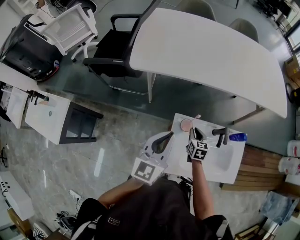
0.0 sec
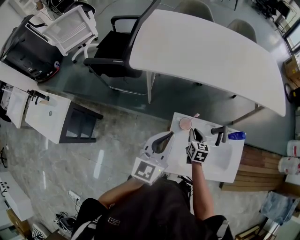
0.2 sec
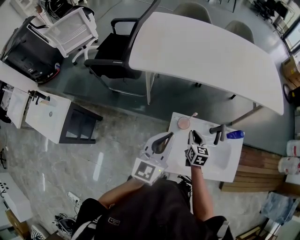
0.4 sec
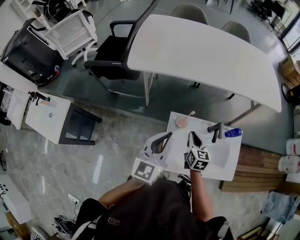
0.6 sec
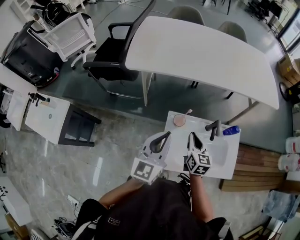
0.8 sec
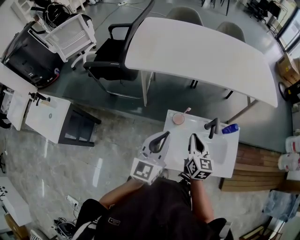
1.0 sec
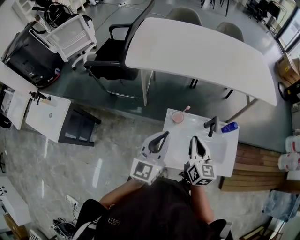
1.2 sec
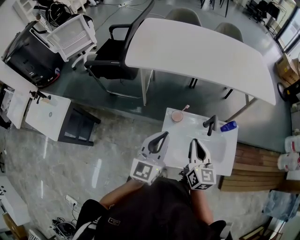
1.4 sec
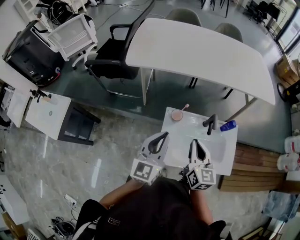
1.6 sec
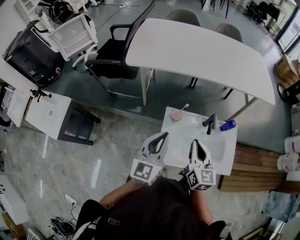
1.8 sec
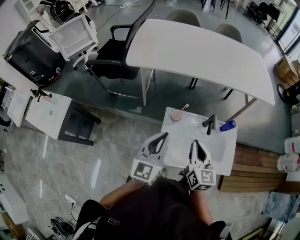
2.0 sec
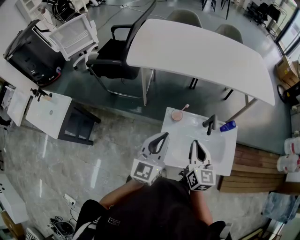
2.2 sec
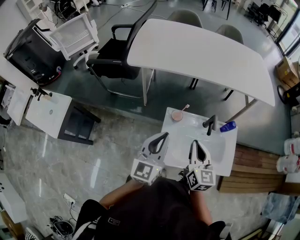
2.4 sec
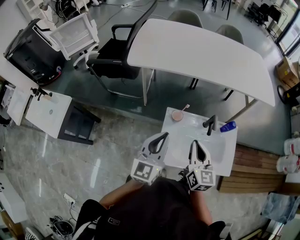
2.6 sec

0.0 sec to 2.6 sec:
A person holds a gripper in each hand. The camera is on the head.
0.0 sec to 1.2 sec: The left gripper is displaced backward by roughly 10 cm. Meanwhile the right gripper shifts some 25 cm upward and backward, and turns by approximately 30 degrees.
1.2 sec to 2.6 sec: The grippers make only small movements.

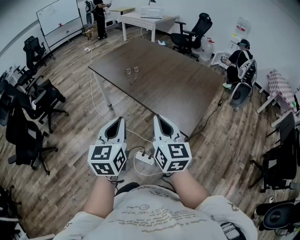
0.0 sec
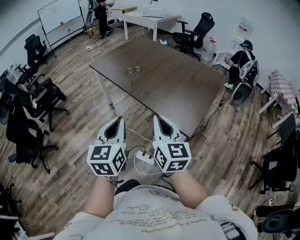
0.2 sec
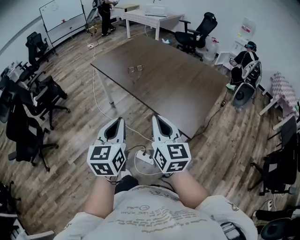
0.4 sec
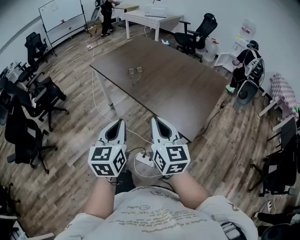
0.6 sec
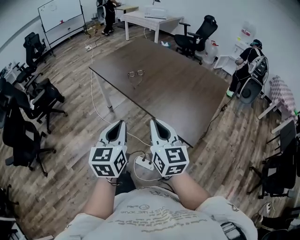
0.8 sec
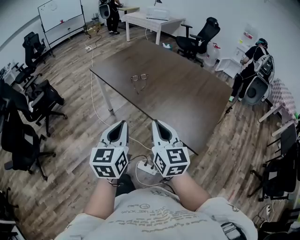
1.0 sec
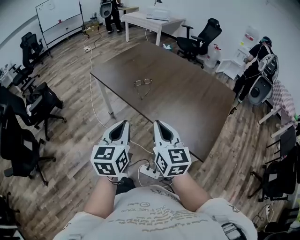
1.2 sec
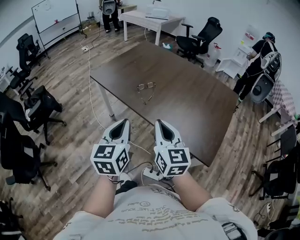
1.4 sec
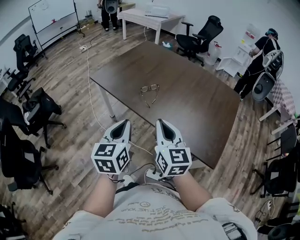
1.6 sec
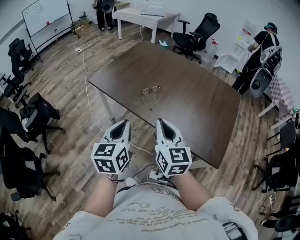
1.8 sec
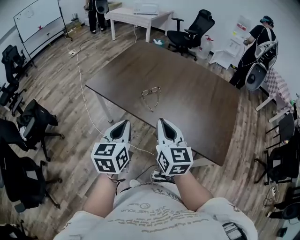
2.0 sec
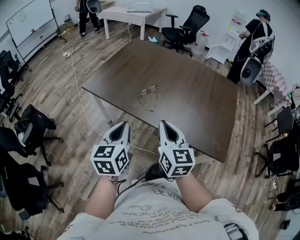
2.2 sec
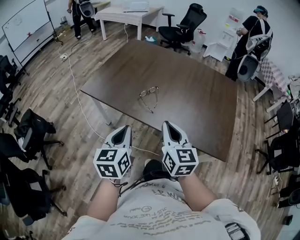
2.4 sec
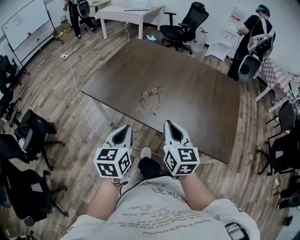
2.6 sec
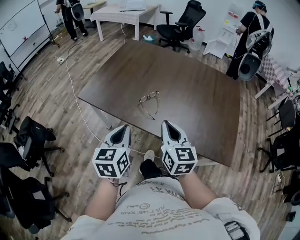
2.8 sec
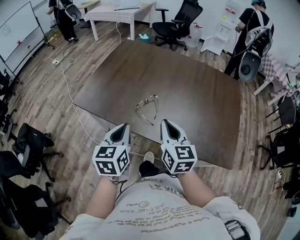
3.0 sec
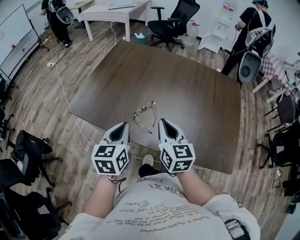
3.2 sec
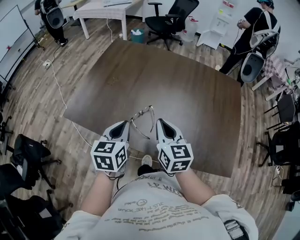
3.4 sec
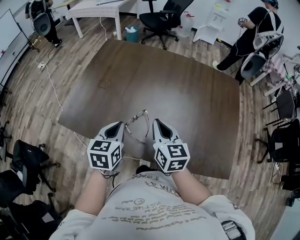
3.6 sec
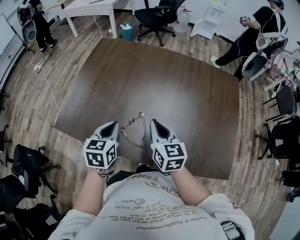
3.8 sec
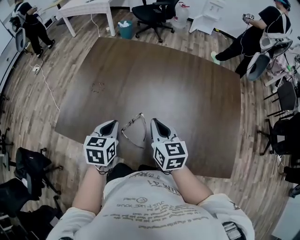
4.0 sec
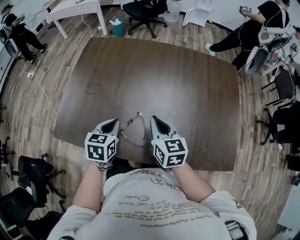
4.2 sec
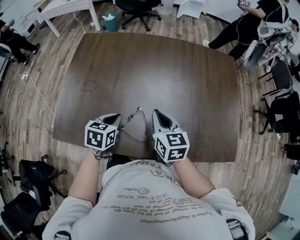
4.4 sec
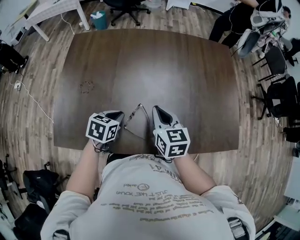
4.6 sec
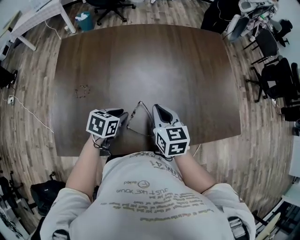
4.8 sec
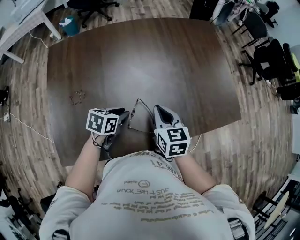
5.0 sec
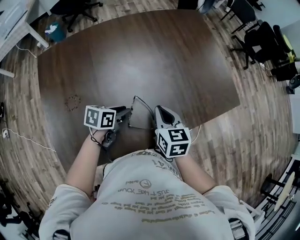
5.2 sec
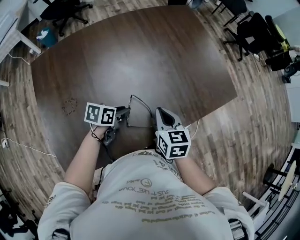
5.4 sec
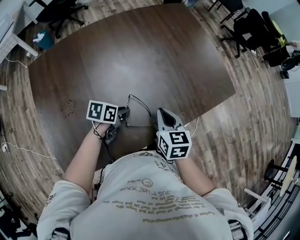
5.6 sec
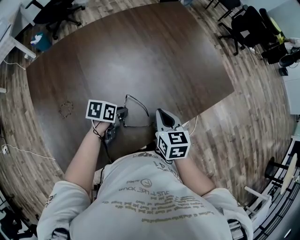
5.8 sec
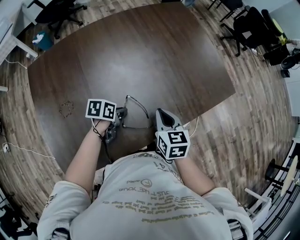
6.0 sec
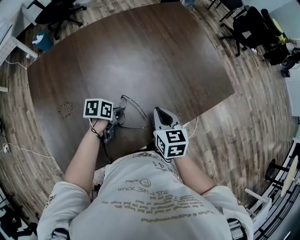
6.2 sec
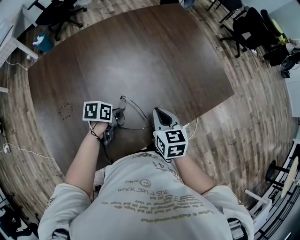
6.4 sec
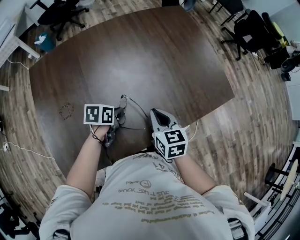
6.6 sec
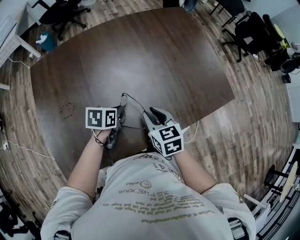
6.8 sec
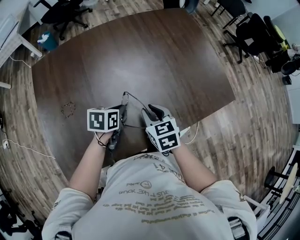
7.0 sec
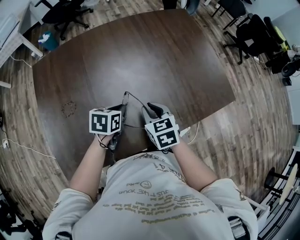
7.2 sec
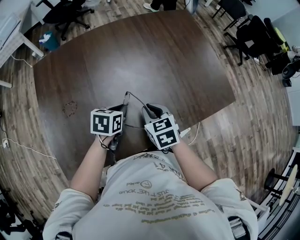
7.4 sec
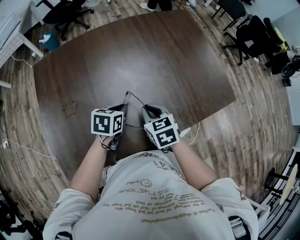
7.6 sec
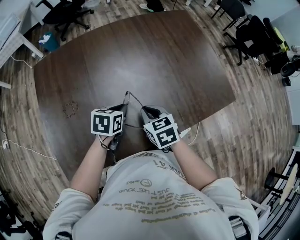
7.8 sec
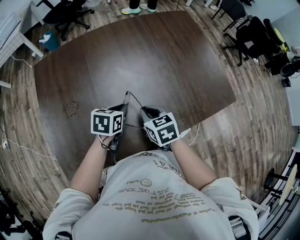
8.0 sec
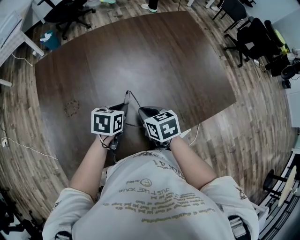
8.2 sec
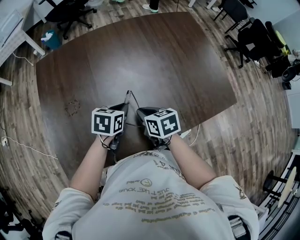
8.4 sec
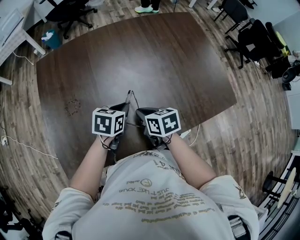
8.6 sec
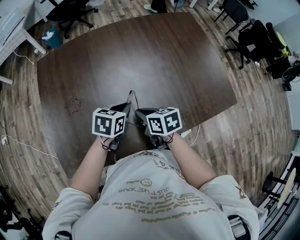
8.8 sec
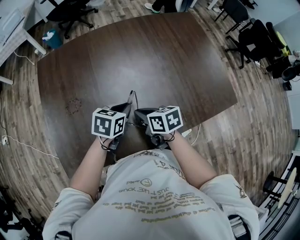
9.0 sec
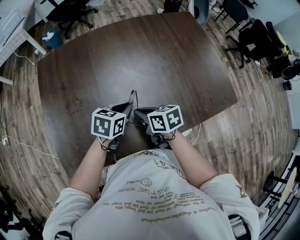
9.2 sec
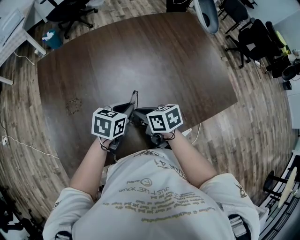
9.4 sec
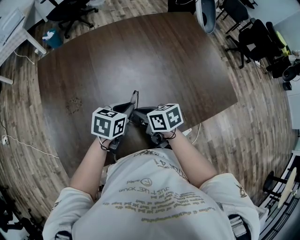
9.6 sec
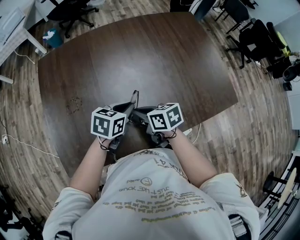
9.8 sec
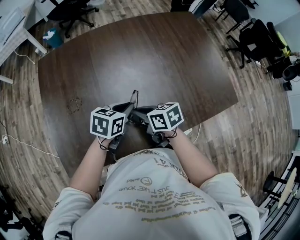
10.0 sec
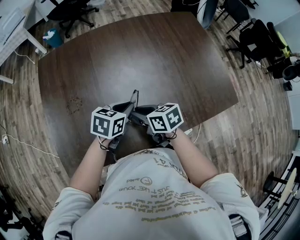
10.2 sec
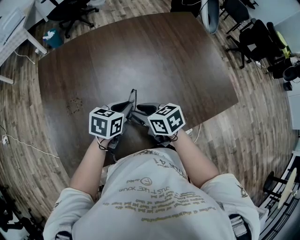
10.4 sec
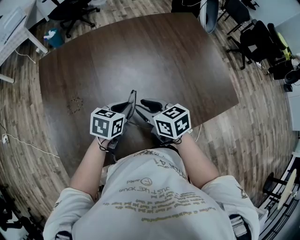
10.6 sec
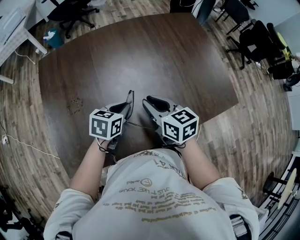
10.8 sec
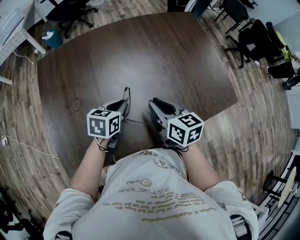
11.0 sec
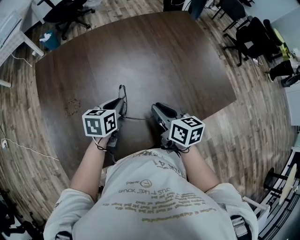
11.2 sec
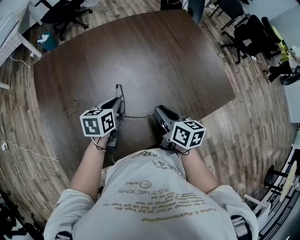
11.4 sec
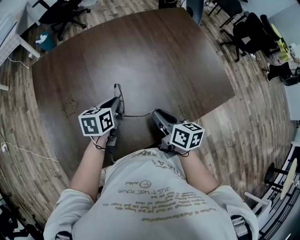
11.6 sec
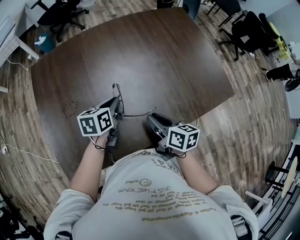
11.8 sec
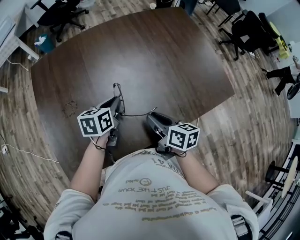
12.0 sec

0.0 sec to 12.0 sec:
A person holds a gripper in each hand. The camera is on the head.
0.0 sec to 1.6 sec: The two grippers go some 30 cm forward and to the left.
1.6 sec to 3.0 sec: The grippers both shift forward by about 20 cm.
3.0 sec to 4.4 sec: The right gripper heads forward, covering roughly 20 cm. The left gripper travels forward and downward by some 25 cm, and rotates about 40 degrees.
4.4 sec to 6.0 sec: The left gripper goes some 10 cm downward, and swivels about 50 degrees. Meanwhile the right gripper changes place by some 10 cm, and changes its angle by about 40 degrees.
6.0 sec to 7.6 sec: The left gripper is displaced upward by approximately 10 cm, and rotates roughly 20 degrees; the right gripper moves to the left, approximately 5 cm, and turns by about 20 degrees.
7.6 sec to 9.0 sec: The right gripper heads to the left, covering about 5 cm, and changes its angle by roughly 30 degrees.
9.0 sec to 10.4 sec: The right gripper opens its fingers.
10.4 sec to 12.0 sec: The right gripper goes approximately 10 cm to the right, and changes its angle by about 30 degrees.

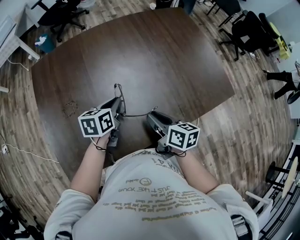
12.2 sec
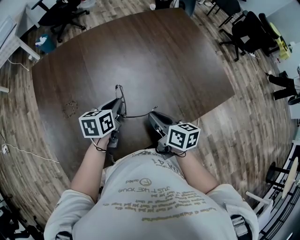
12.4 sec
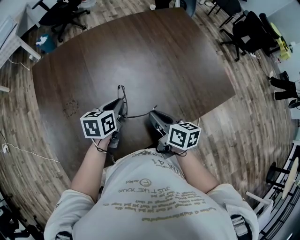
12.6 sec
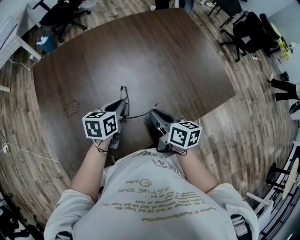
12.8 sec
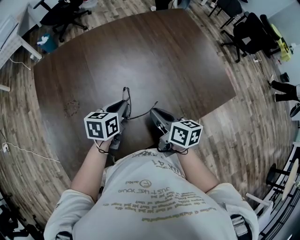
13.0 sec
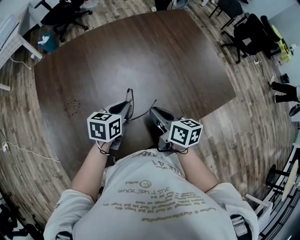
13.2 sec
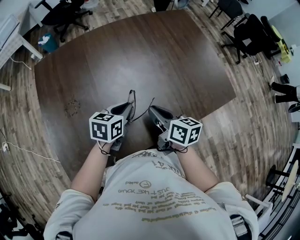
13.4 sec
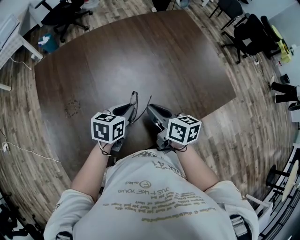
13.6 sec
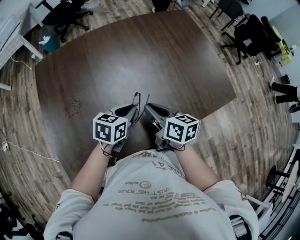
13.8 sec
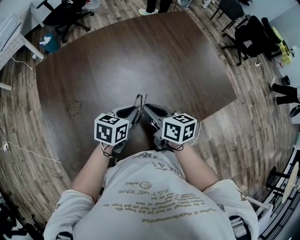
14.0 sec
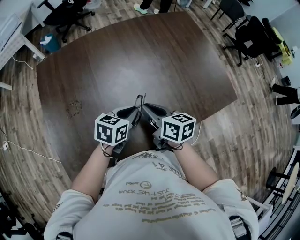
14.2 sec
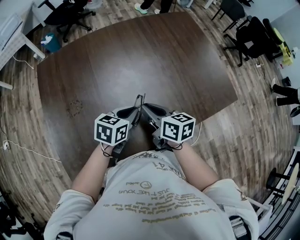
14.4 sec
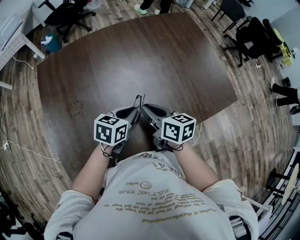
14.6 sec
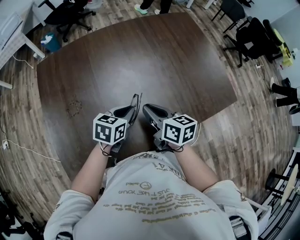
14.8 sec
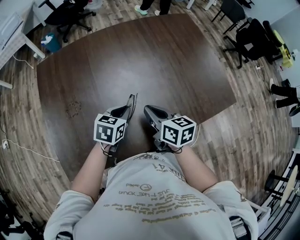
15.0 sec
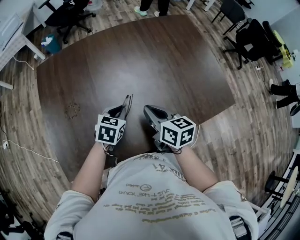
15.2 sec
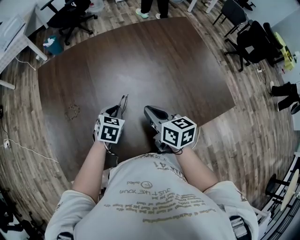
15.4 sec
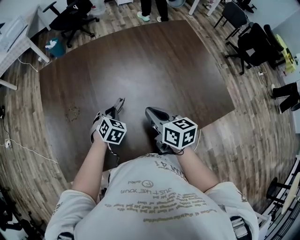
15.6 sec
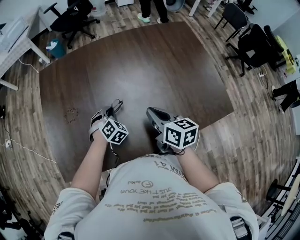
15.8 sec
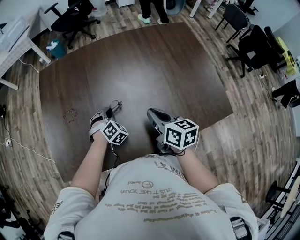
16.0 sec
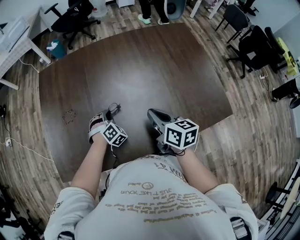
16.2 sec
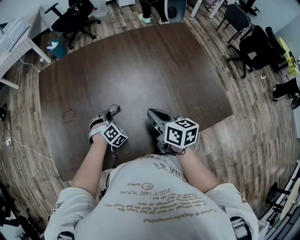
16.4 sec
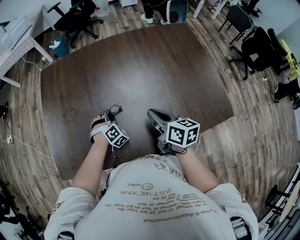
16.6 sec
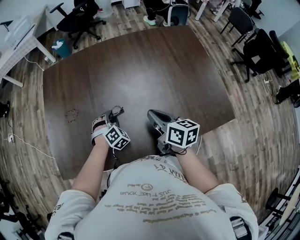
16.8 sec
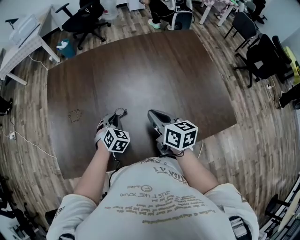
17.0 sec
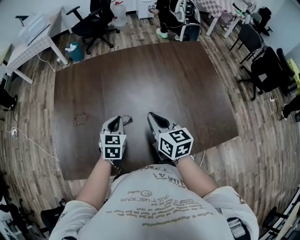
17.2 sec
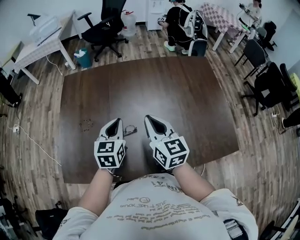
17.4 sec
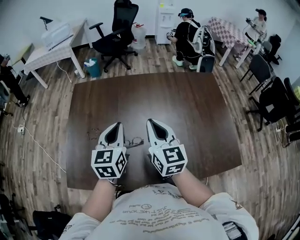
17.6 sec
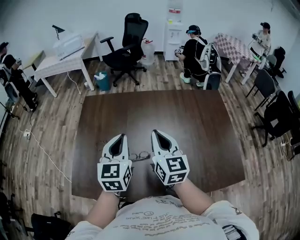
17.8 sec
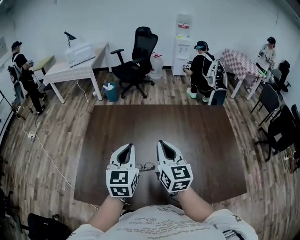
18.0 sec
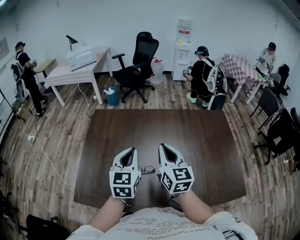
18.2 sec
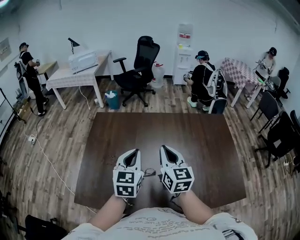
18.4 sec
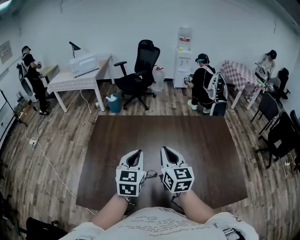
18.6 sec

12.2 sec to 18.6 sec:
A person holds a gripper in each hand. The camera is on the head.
12.2 sec to 13.8 sec: The left gripper travels to the right by about 5 cm.
13.8 sec to 15.4 sec: The left gripper shifts by roughly 5 cm, and swivels some 30 degrees.
15.4 sec to 17.0 sec: The right gripper heads to the right, covering approximately 5 cm, while the left gripper reaches about 10 cm downward, then returns, swivels roughly 20 degrees, and opens, then closes again.
17.0 sec to 18.6 sec: The left gripper moves upward, some 25 cm, and points its fingers approximately 30 degrees further upward. Meanwhile the right gripper shifts about 20 cm upward, to the left and forward, and turns by approximately 30 degrees.

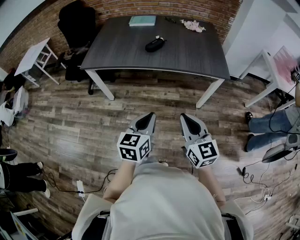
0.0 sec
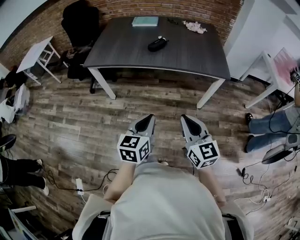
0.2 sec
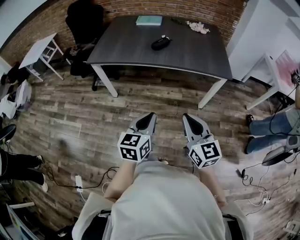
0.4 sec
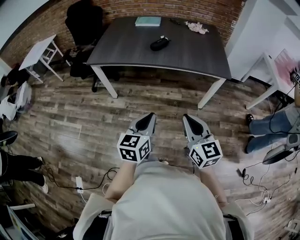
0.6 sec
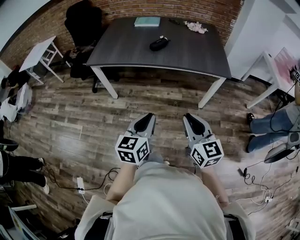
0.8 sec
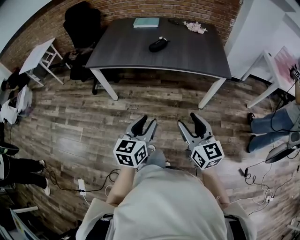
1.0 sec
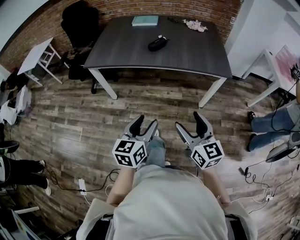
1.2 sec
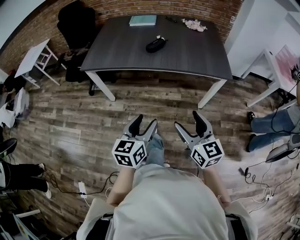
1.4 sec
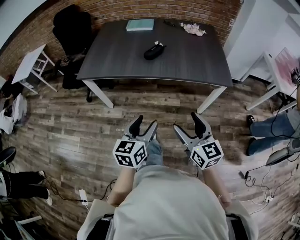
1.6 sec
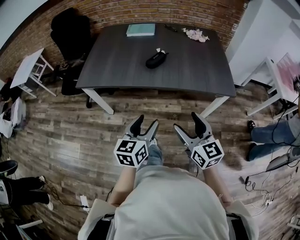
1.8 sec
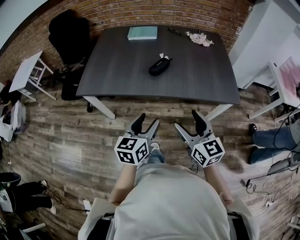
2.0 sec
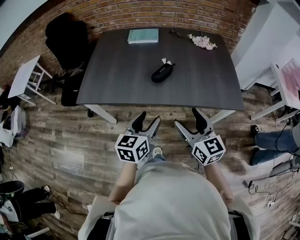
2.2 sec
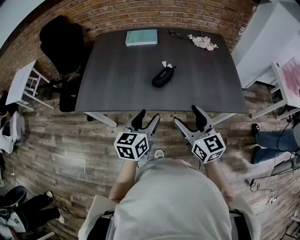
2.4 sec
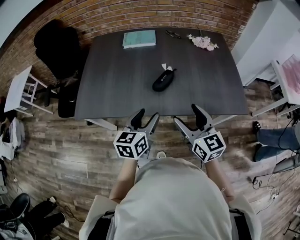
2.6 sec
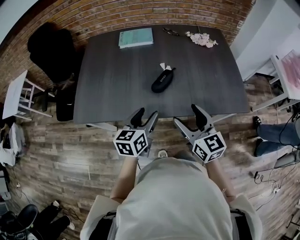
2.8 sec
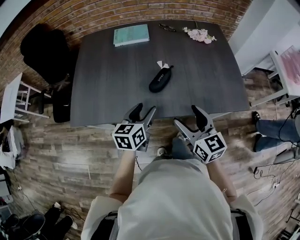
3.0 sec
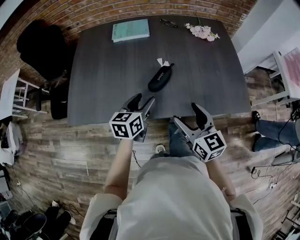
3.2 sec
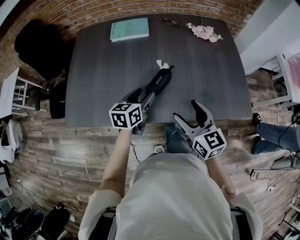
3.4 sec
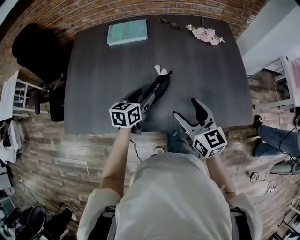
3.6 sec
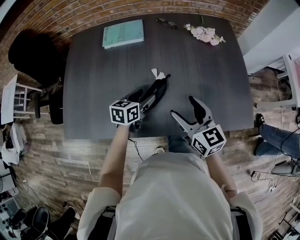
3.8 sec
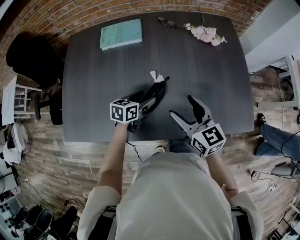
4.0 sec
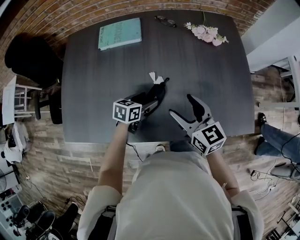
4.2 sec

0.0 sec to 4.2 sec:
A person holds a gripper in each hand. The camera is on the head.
0.0 sec to 1.4 sec: The right gripper opens its fingers, while the left gripper opens.
1.4 sec to 2.8 sec: The two grippers go approximately 40 cm forward.
2.8 sec to 4.2 sec: The left gripper shifts approximately 30 cm forward and downward, and rotates about 30 degrees, while the right gripper moves forward, about 20 cm.
